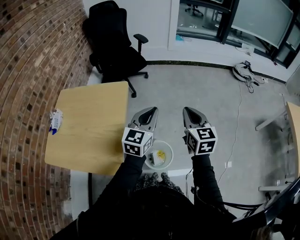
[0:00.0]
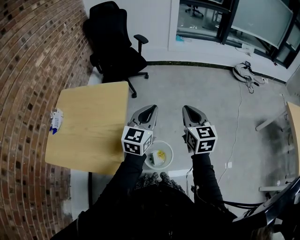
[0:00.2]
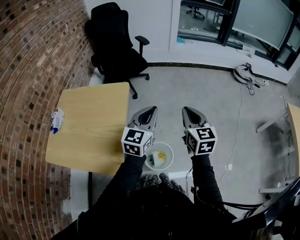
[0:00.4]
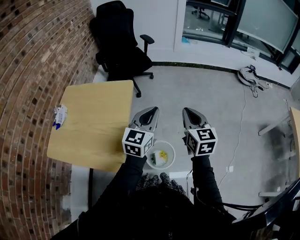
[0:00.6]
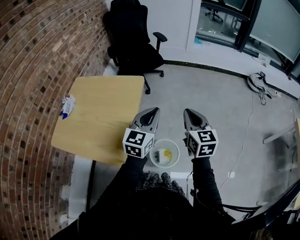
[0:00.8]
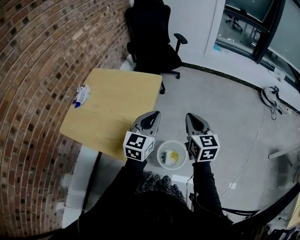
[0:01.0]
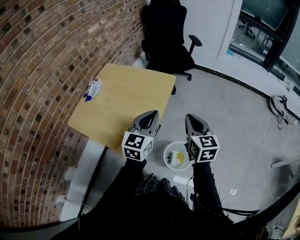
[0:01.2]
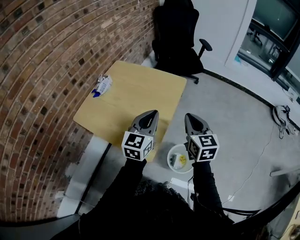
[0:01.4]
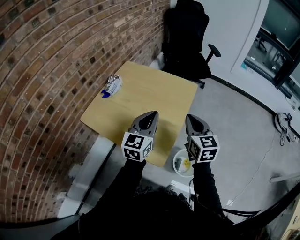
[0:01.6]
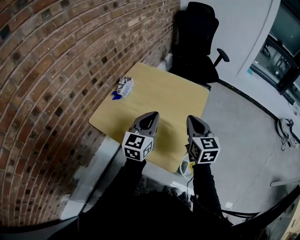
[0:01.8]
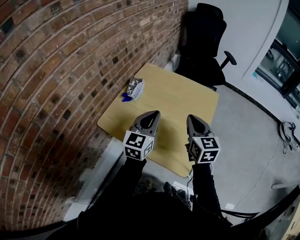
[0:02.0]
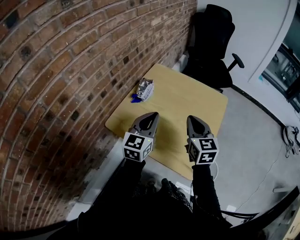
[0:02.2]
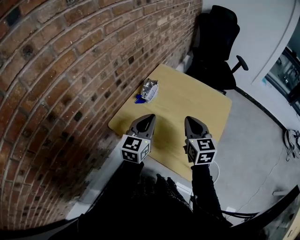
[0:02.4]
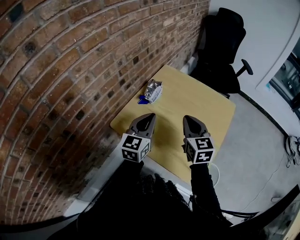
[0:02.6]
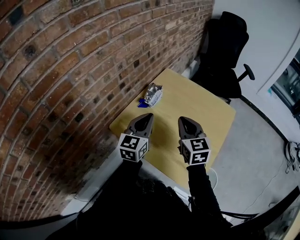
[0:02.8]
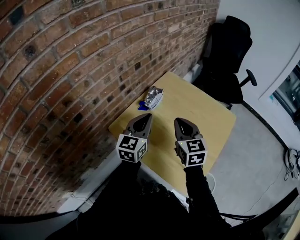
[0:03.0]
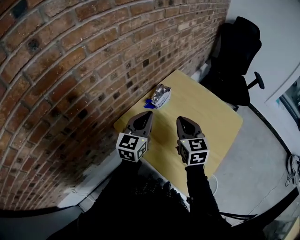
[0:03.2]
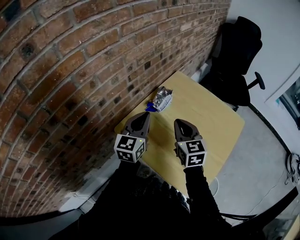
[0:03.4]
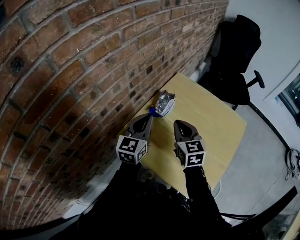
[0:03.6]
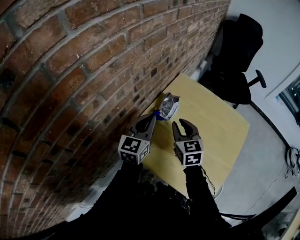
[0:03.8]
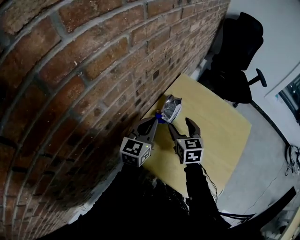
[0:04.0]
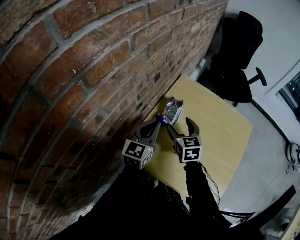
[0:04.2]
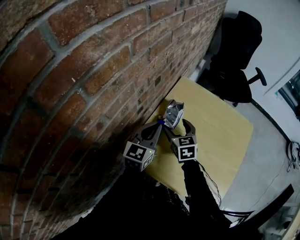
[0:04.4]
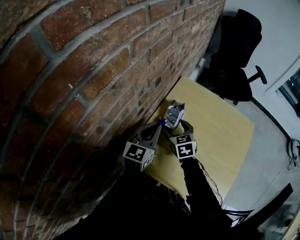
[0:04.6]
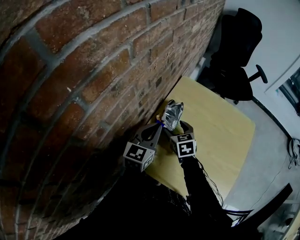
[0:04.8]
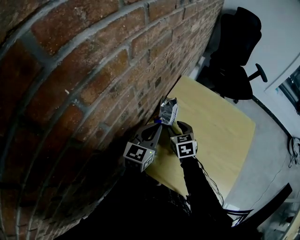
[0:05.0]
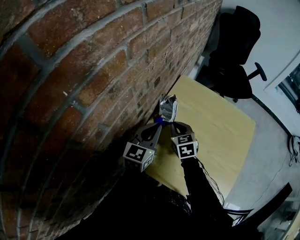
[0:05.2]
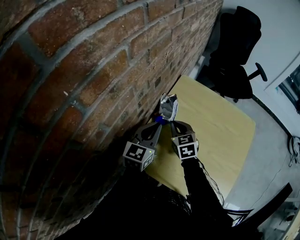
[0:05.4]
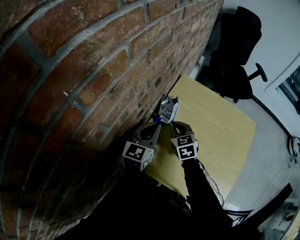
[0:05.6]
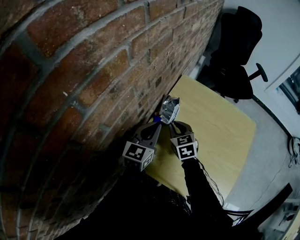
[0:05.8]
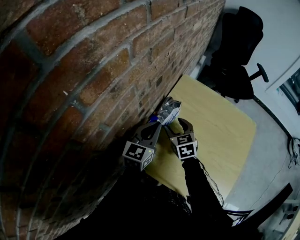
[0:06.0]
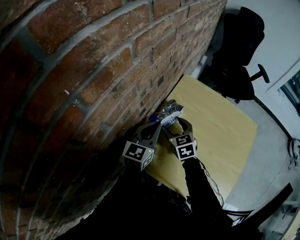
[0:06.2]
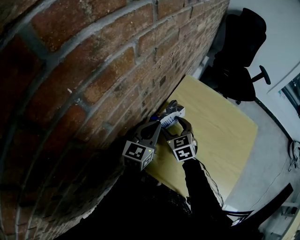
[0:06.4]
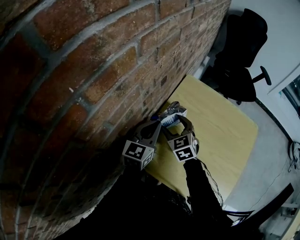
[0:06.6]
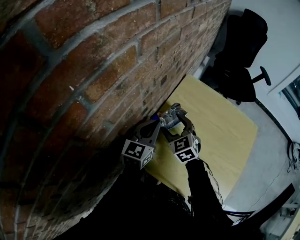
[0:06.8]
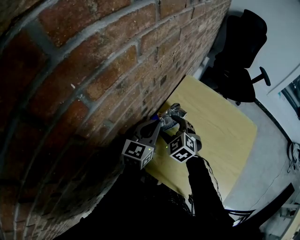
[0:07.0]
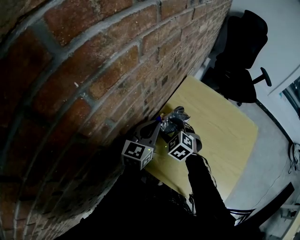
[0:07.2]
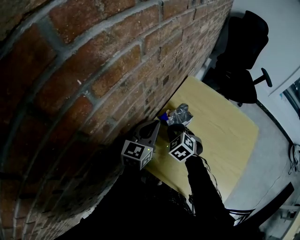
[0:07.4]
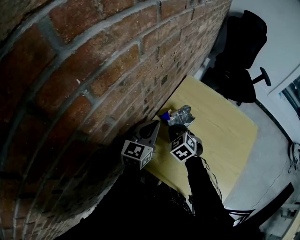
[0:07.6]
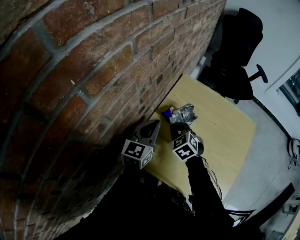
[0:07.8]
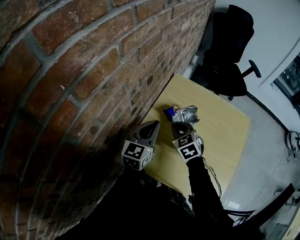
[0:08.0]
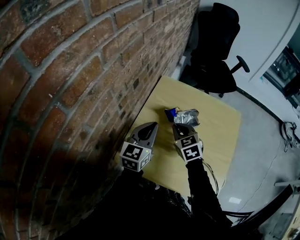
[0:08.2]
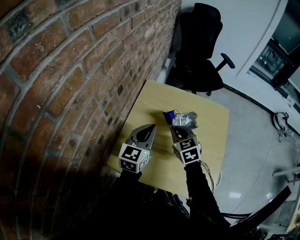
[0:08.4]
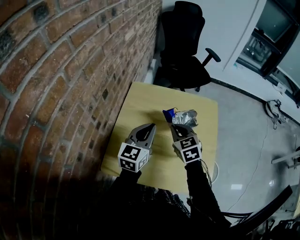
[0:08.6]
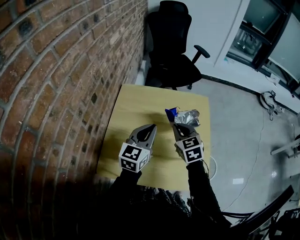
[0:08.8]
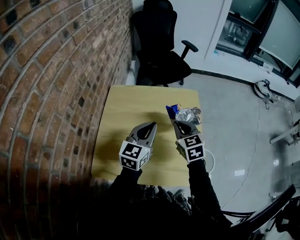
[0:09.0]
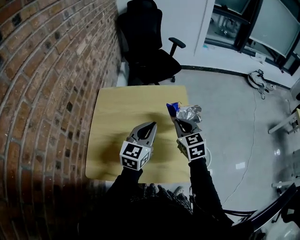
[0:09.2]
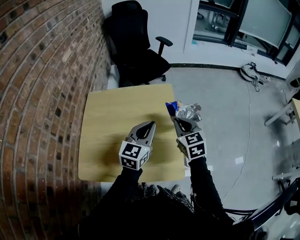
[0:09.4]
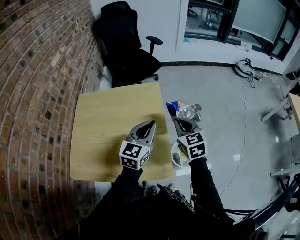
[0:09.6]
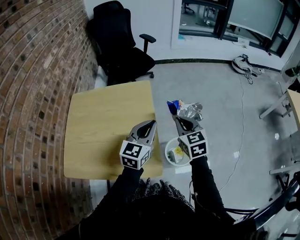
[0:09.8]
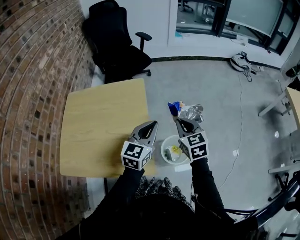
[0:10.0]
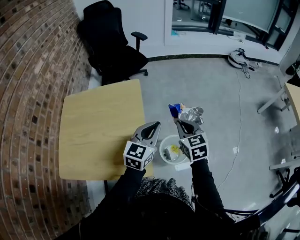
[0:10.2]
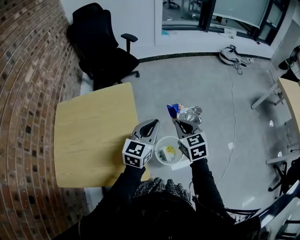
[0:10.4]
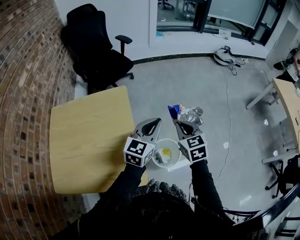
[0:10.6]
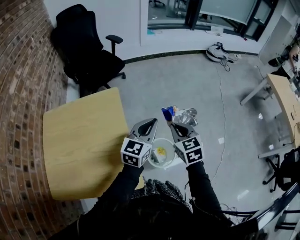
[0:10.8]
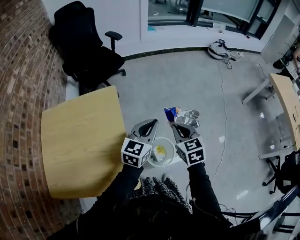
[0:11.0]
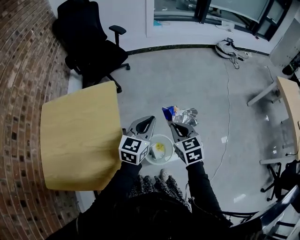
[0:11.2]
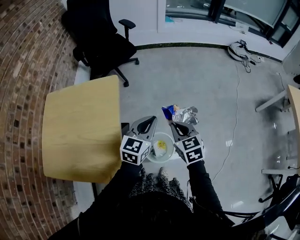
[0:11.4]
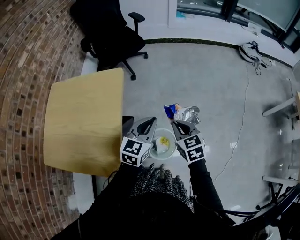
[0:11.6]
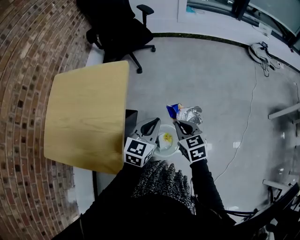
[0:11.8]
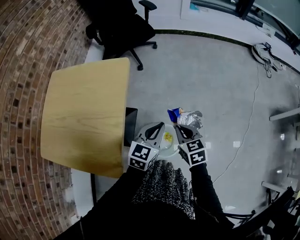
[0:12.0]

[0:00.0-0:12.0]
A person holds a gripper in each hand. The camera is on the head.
0:00.0 to 0:01.6: The left gripper ends up about 30 cm from where it was, and turns by some 30 degrees, while the right gripper ends up approximately 30 cm from where it was, and turns by approximately 30 degrees.
0:01.6 to 0:03.0: The grippers both shift to the left and forward by roughly 30 cm.
0:03.0 to 0:04.4: The left gripper is displaced forward, to the left and downward by approximately 15 cm; the right gripper travels forward, downward and to the left by roughly 25 cm, and opens its fingers.
0:04.4 to 0:06.0: The right gripper closes, then reopens.
0:06.0 to 0:07.6: The right gripper rotates roughly 30 degrees, and closes its fingers.
0:07.6 to 0:09.0: The left gripper ends up about 30 cm from where it was, and changes its angle by roughly 30 degrees, while the right gripper ends up roughly 35 cm from where it was, and changes its angle by approximately 50 degrees.
0:09.0 to 0:10.4: Both grippers move to the right, some 35 cm.
0:10.4 to 0:12.0: The grippers both shift downward and to the right by approximately 15 cm. The right gripper changes its angle by roughly 20 degrees.

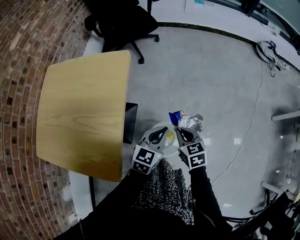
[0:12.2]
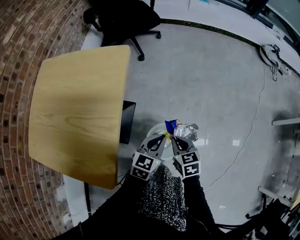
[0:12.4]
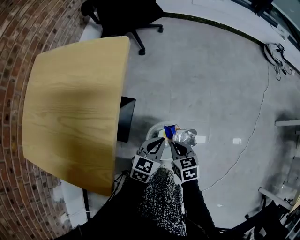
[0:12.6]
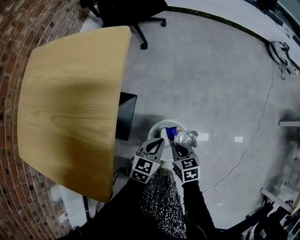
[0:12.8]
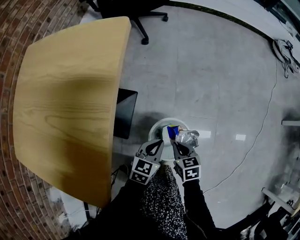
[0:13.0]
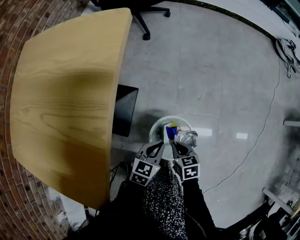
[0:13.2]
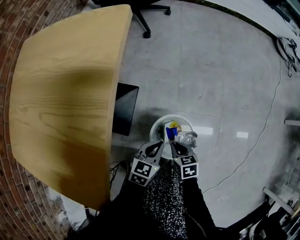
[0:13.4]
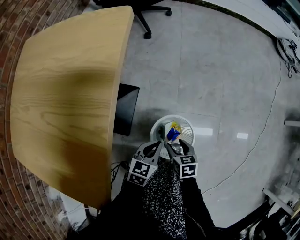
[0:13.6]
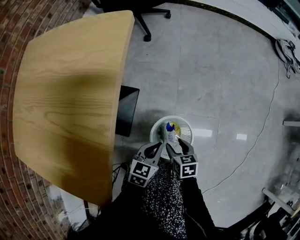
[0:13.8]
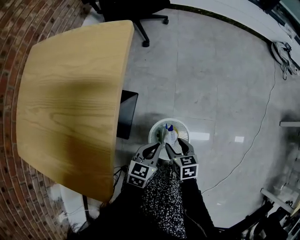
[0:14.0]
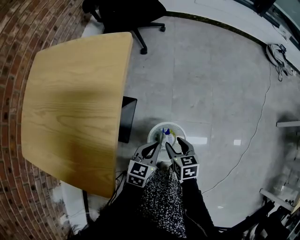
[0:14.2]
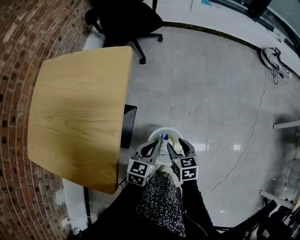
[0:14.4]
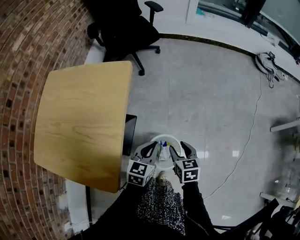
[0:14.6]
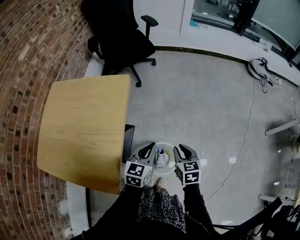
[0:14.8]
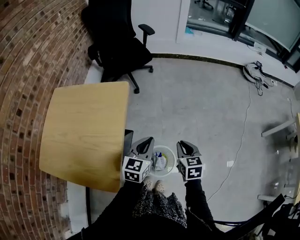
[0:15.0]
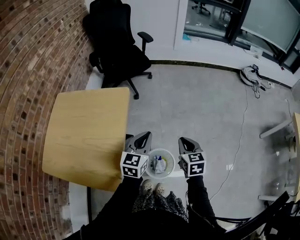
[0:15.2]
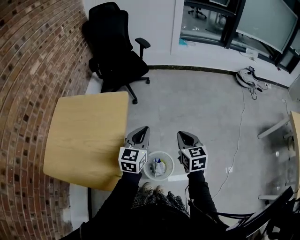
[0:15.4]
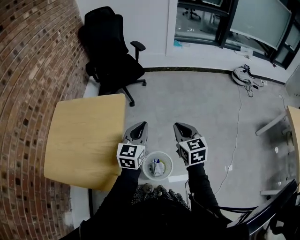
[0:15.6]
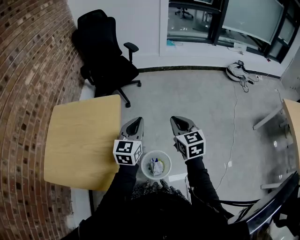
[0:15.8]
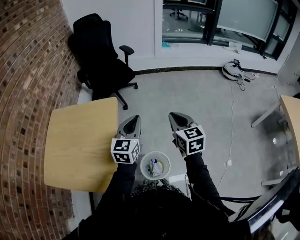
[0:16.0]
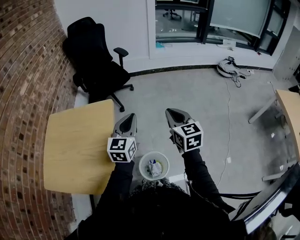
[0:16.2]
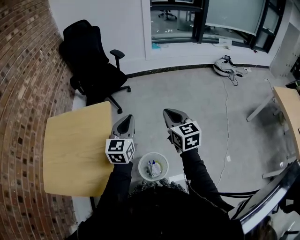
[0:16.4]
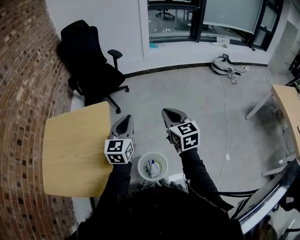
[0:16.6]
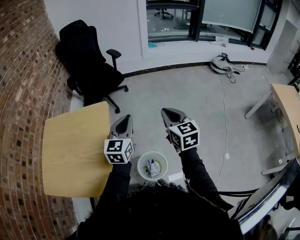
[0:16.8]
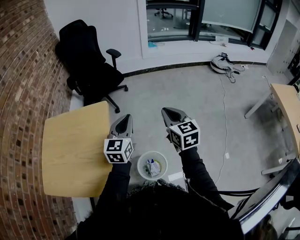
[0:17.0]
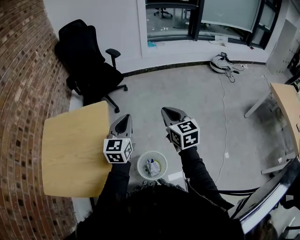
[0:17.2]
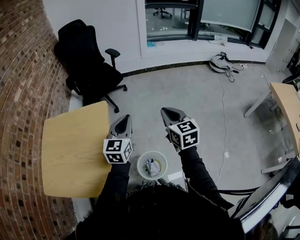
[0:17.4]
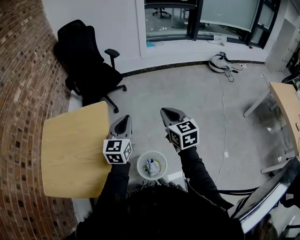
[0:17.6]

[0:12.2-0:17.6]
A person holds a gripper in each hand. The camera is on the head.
0:12.2 to 0:13.6: The two grippers go about 25 cm downward. The right gripper changes its angle by approximately 20 degrees, and opens.
0:13.6 to 0:15.0: Both grippers travel together upward, some 35 cm. The left gripper changes its angle by approximately 20 degrees, while the right gripper rotates about 30 degrees, and closes.
0:15.0 to 0:16.2: The two grippers go about 20 cm upward. The right gripper rotates about 20 degrees.
0:16.2 to 0:17.6: Neither gripper changes place.

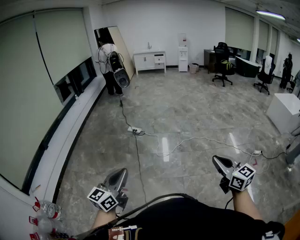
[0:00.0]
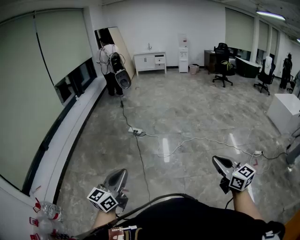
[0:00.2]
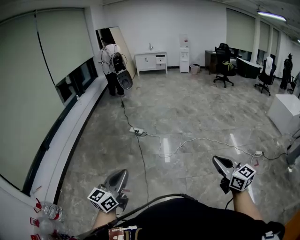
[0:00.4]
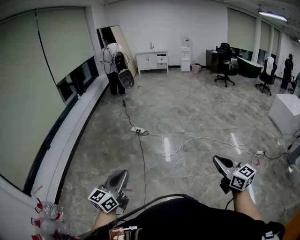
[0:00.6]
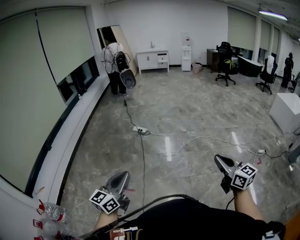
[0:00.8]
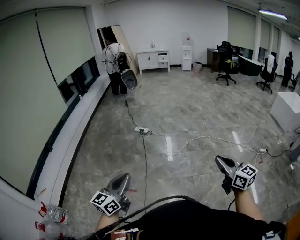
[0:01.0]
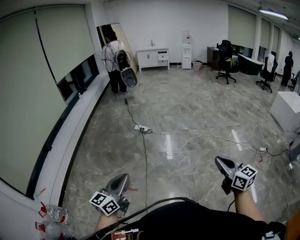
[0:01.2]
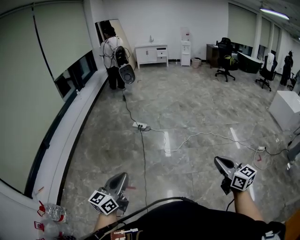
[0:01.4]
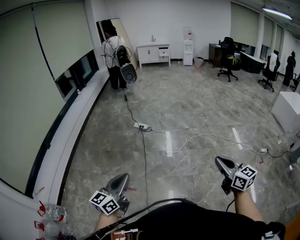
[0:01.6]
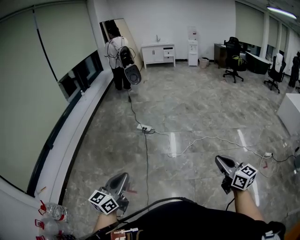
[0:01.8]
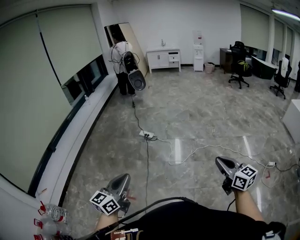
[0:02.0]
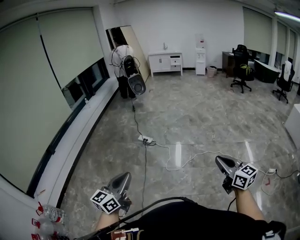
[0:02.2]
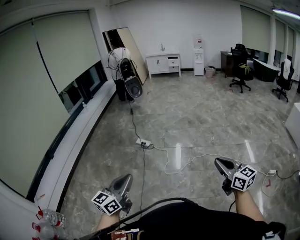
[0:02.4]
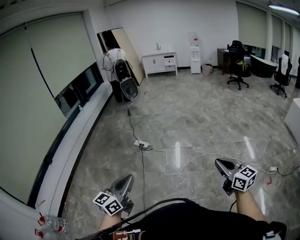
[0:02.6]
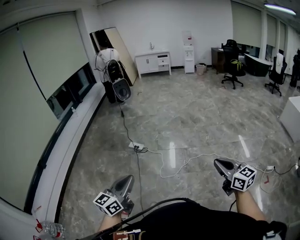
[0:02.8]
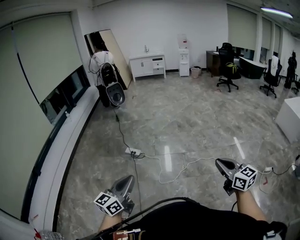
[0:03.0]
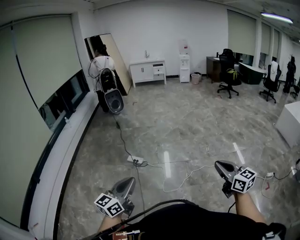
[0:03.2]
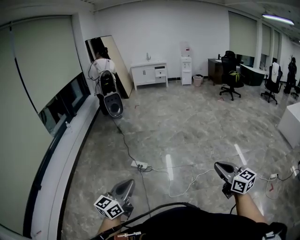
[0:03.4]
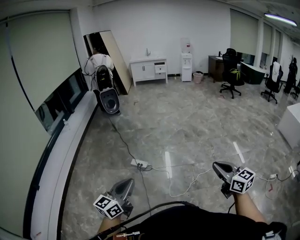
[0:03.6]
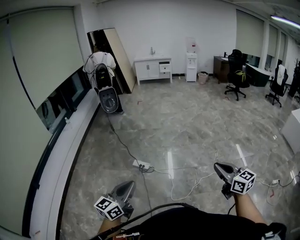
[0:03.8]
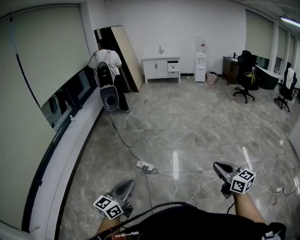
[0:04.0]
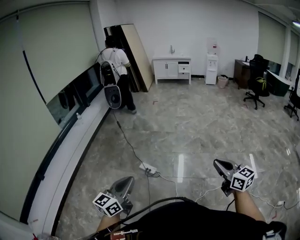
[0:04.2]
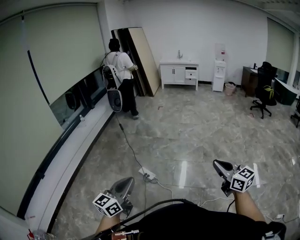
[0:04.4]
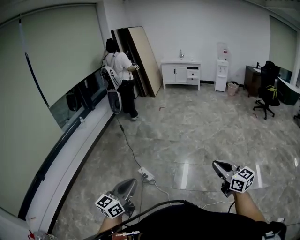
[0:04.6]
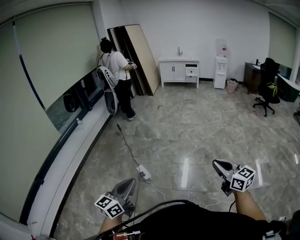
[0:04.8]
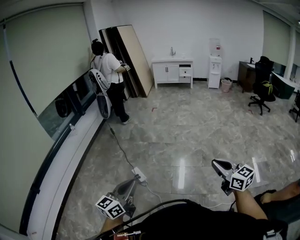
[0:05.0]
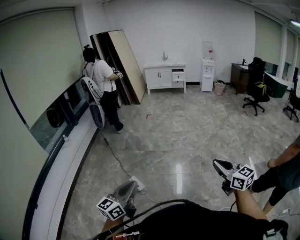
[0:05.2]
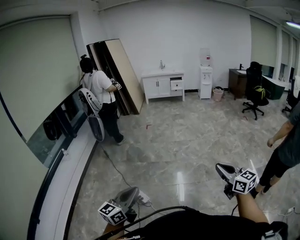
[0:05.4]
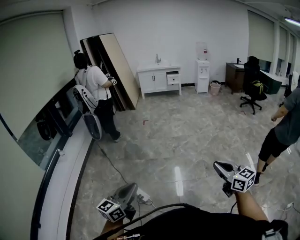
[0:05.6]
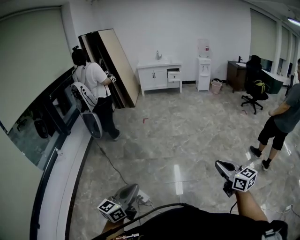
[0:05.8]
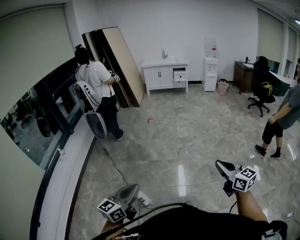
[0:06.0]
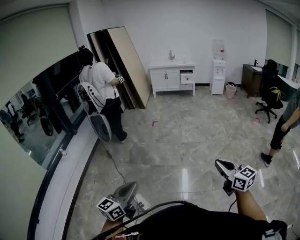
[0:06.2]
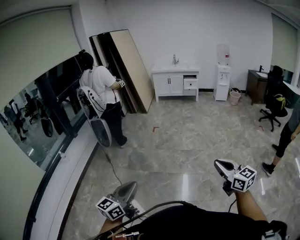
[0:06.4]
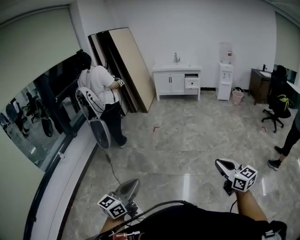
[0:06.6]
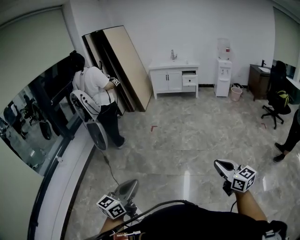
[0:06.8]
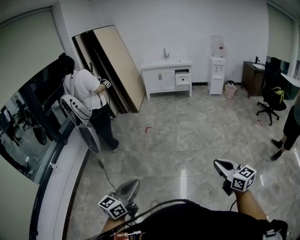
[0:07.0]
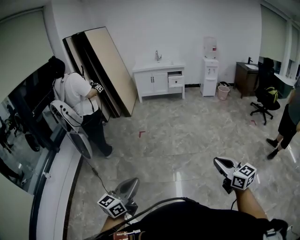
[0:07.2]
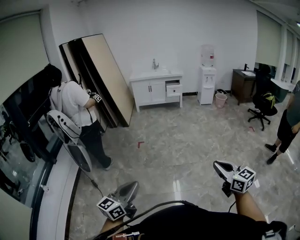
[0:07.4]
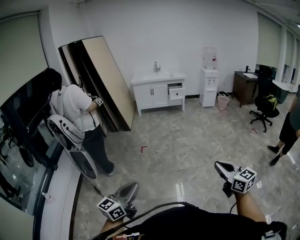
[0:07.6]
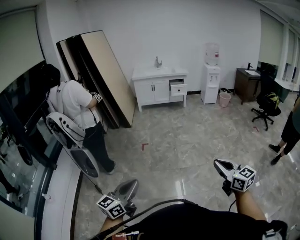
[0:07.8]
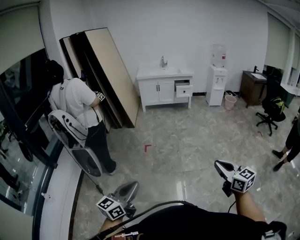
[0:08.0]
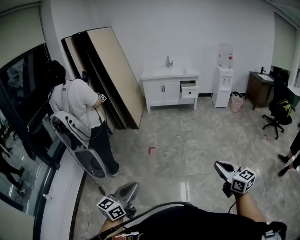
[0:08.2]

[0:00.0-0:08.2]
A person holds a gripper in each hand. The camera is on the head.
0:00.0 to 0:01.6: The grippers both shift to the left and forward by some 15 cm.
0:01.6 to 0:03.2: Both grippers are carried forward, roughly 40 cm.
0:03.2 to 0:05.0: The two grippers travel together, forward, about 60 cm.
0:05.0 to 0:06.6: Both grippers are carried forward, about 50 cm.
0:06.6 to 0:08.2: The two grippers travel together, forward, roughly 50 cm.
